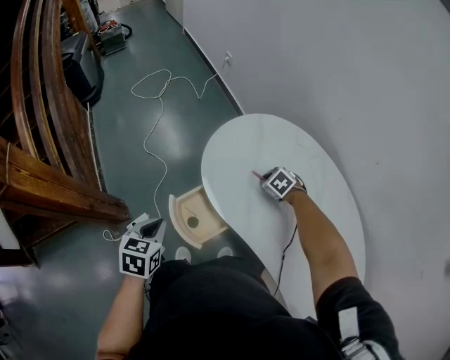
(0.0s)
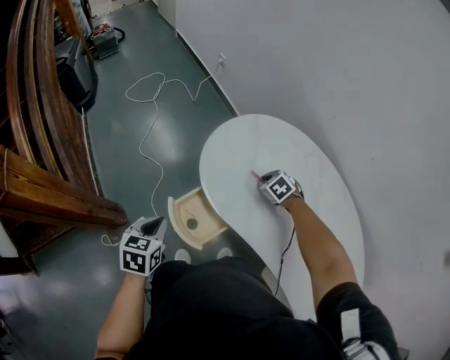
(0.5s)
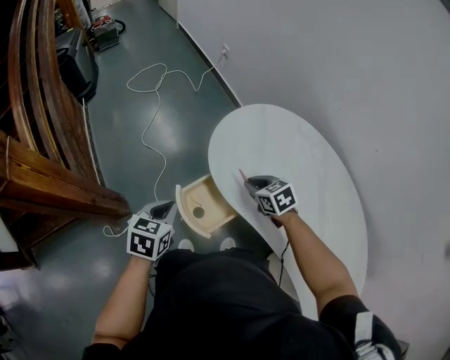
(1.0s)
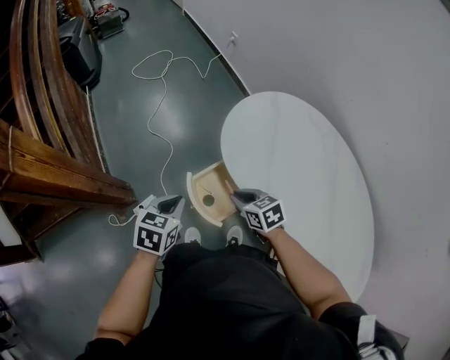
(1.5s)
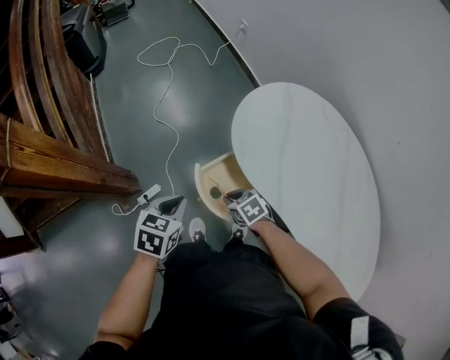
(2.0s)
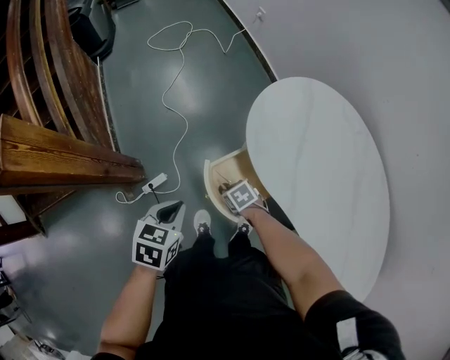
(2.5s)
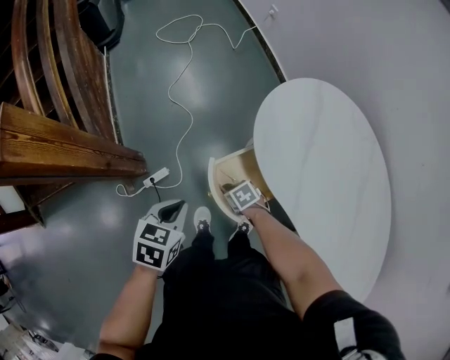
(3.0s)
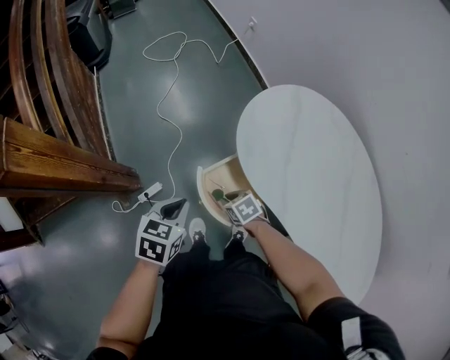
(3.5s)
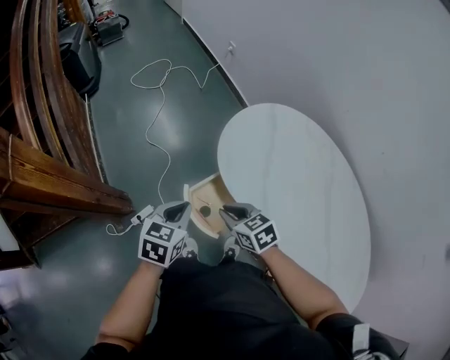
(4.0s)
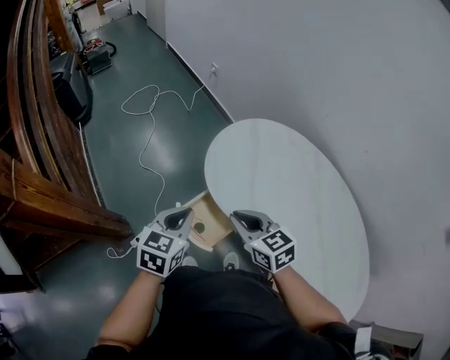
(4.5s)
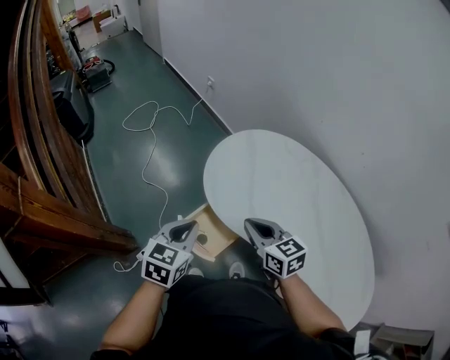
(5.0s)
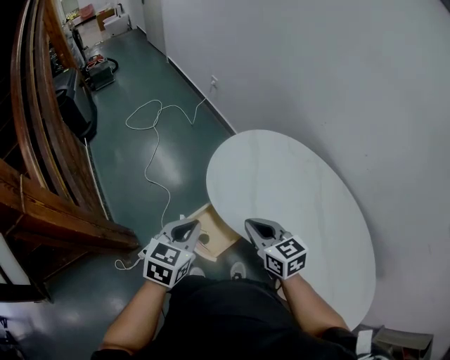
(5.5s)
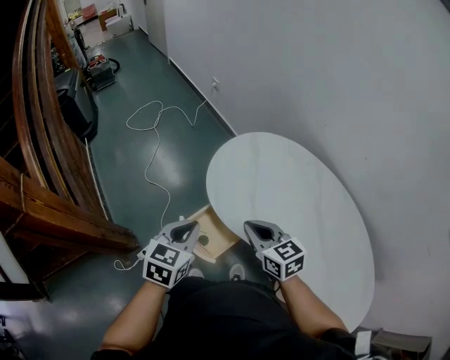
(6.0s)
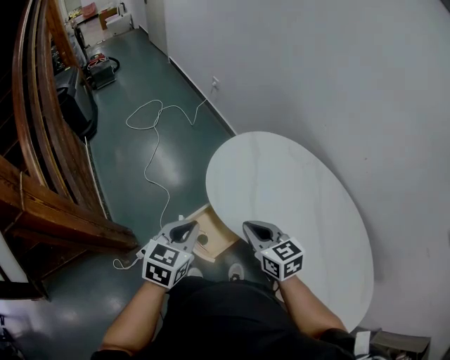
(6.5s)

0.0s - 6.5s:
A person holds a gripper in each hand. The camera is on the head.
0.0s - 2.0s: The right gripper moves to the left and backward, some 30 cm, and rotates about 20 degrees. Meanwhile the left gripper ends up about 5 cm from where it was.
2.0s - 4.5s: The right gripper shifts approximately 25 cm upward, and changes its angle by approximately 40 degrees. Meanwhile the left gripper is displaced upward by about 10 cm.
4.5s - 6.5s: The grippers make only small movements.

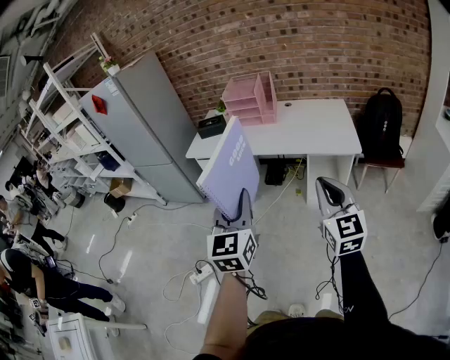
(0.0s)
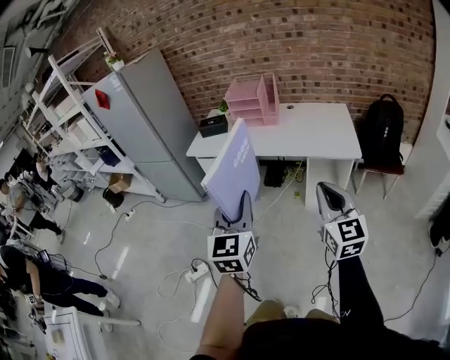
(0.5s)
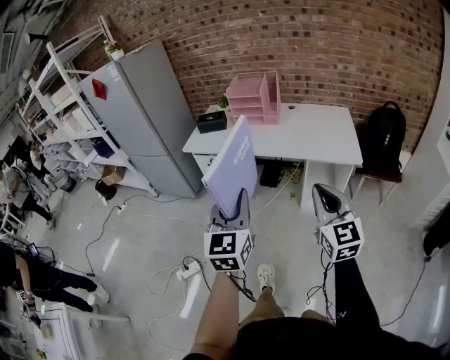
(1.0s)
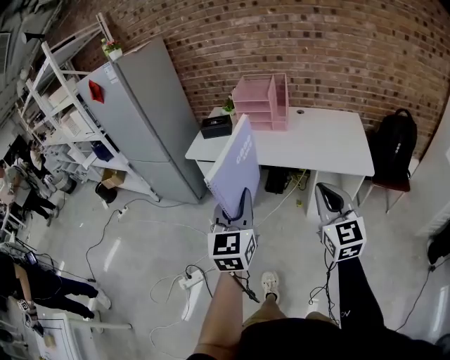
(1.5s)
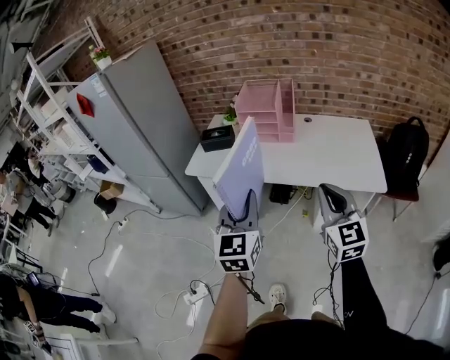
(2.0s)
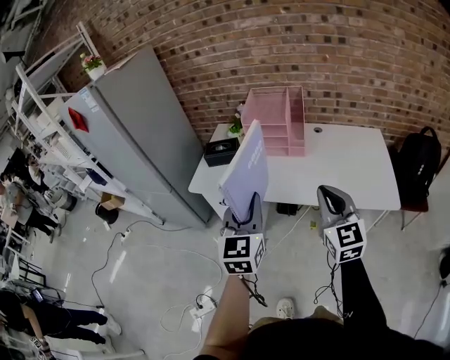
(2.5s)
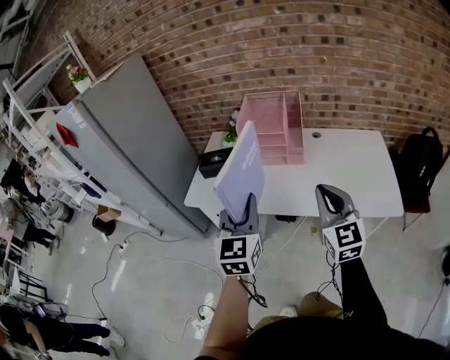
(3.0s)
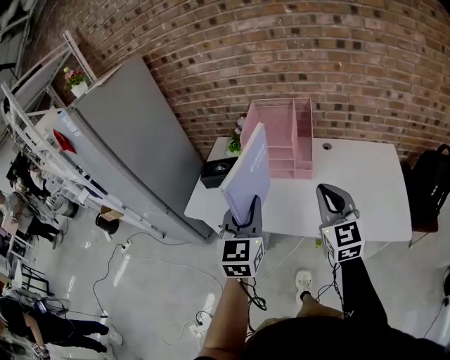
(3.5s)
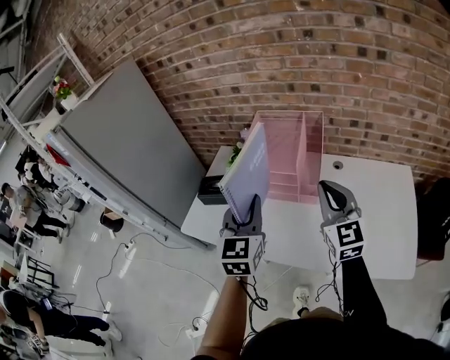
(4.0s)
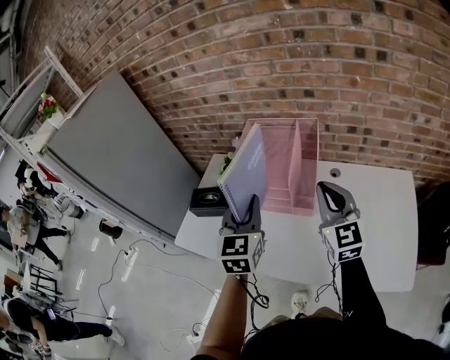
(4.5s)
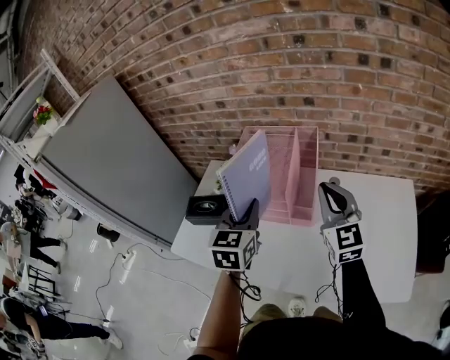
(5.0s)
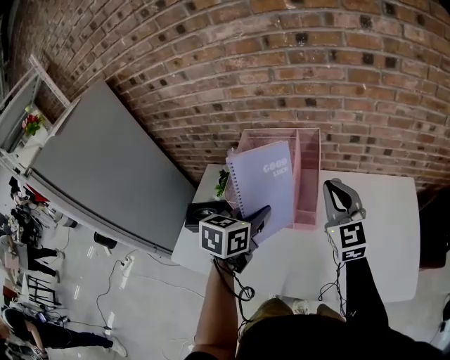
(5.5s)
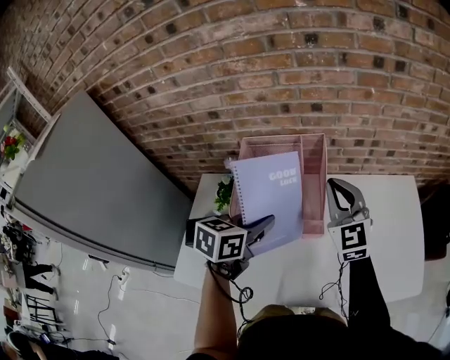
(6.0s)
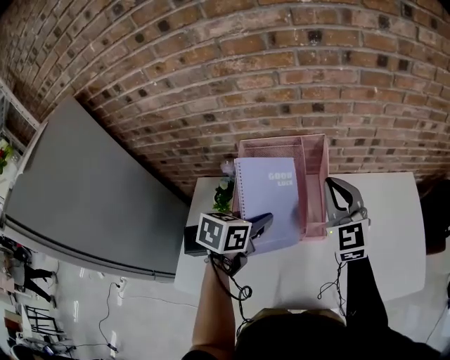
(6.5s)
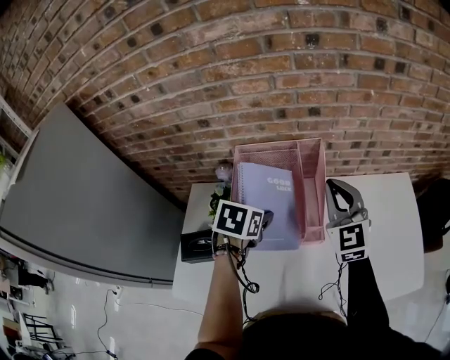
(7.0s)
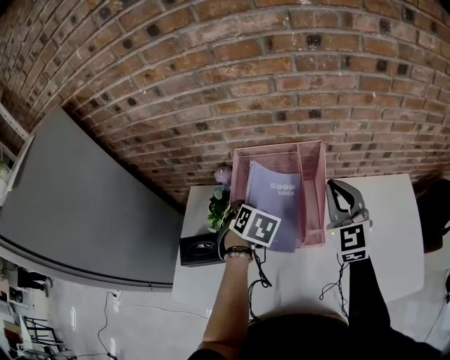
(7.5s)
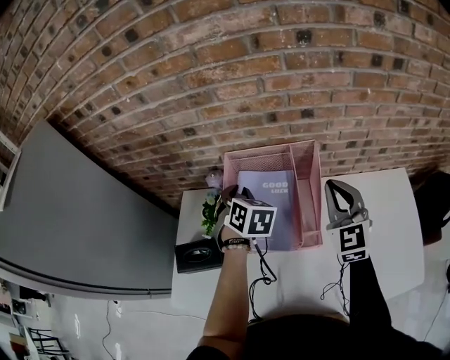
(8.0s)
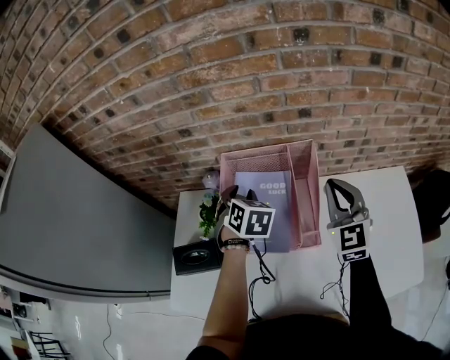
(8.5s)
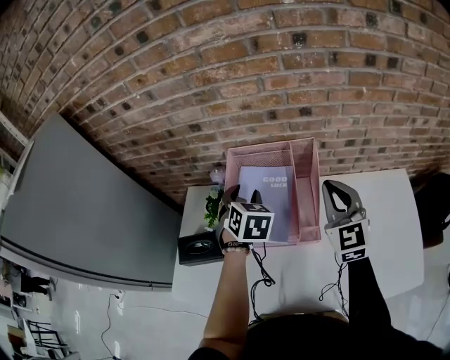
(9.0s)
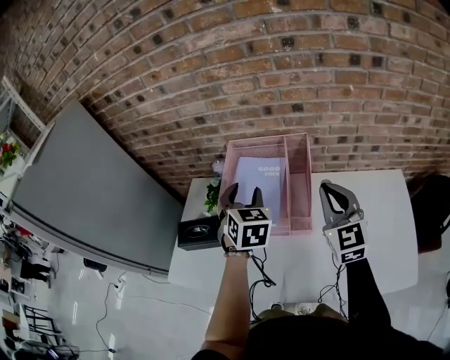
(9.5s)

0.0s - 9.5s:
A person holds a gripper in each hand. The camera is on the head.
0.0s - 2.0s: The grippers both shift forward by about 25 cm.
2.0s - 4.0s: The two grippers travel together, forward, about 40 cm.
4.0s - 5.5s: The left gripper is displaced forward, to the right and downward by roughly 15 cm, and rotates approximately 40 degrees. The right gripper travels forward by approximately 15 cm.
5.5s - 7.5s: The left gripper moves forward, to the left and downward, about 20 cm, turns by about 40 degrees, and opens; the right gripper is displaced forward and to the left by some 10 cm.
7.5s - 9.5s: The right gripper shifts about 10 cm backward; the left gripper moves upward, about 10 cm, angles its fingers upward, by about 30 degrees, and closes, then reopens.

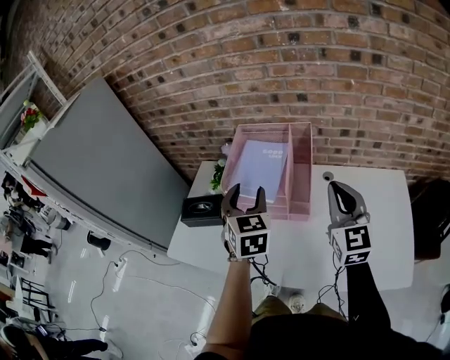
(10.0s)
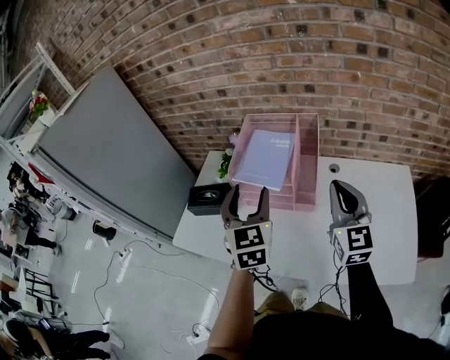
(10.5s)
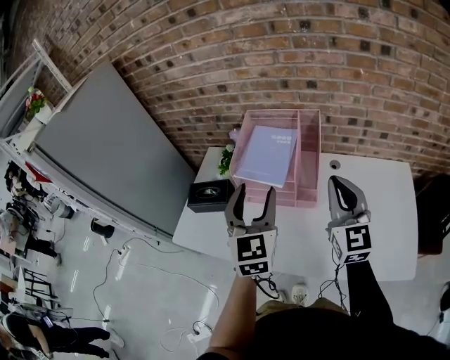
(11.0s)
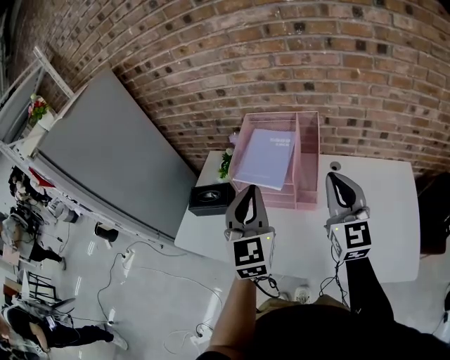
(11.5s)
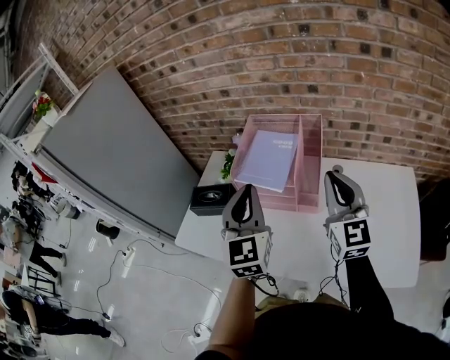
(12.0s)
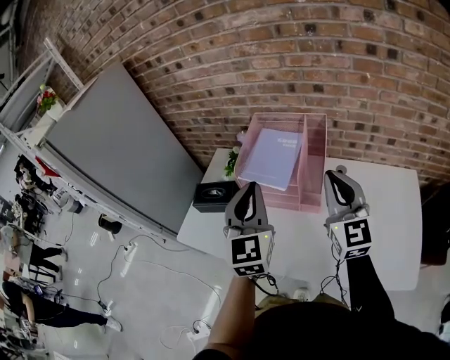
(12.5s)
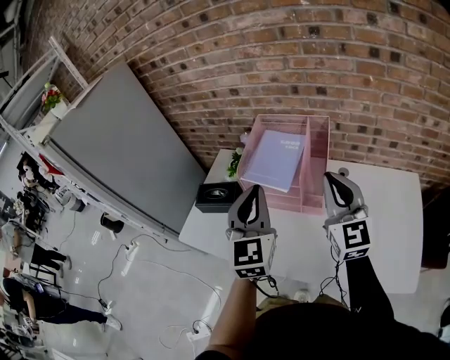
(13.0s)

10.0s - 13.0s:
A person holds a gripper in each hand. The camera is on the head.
10.0s - 11.5s: The left gripper moves backward, some 5 cm, and closes its fingers.
11.5s - 13.0s: The grippers move only a little.

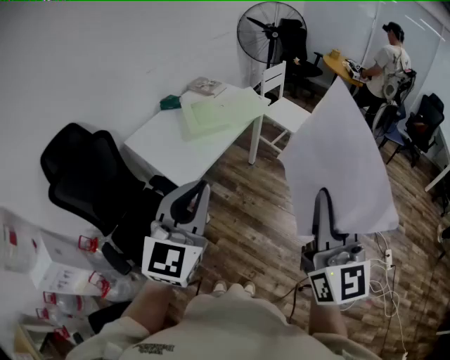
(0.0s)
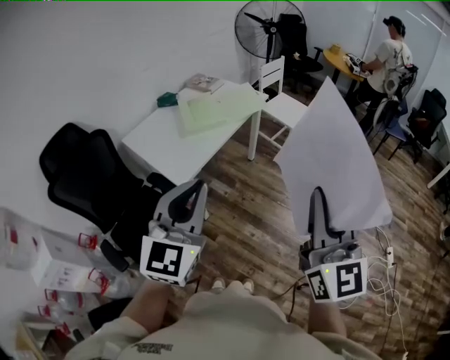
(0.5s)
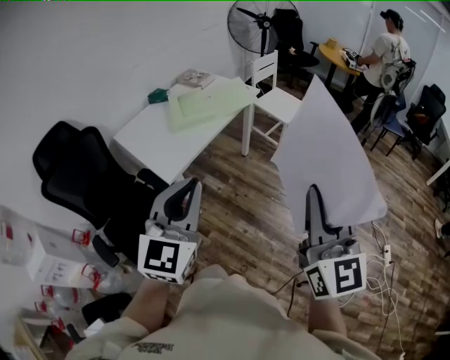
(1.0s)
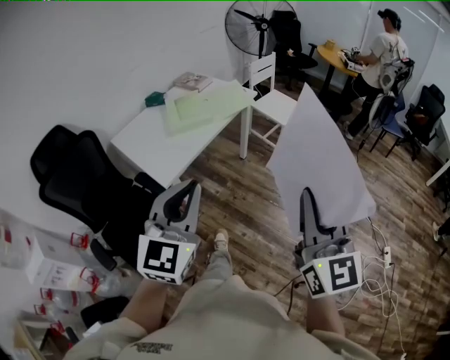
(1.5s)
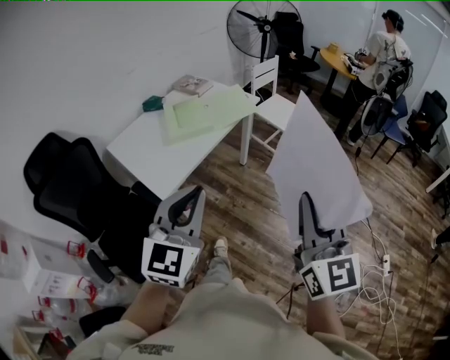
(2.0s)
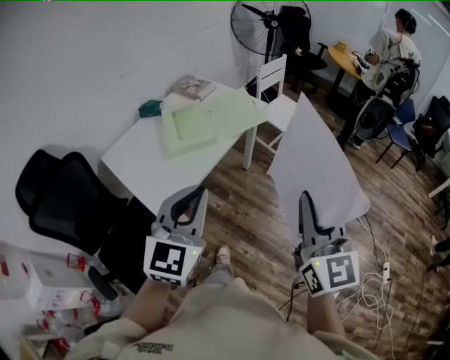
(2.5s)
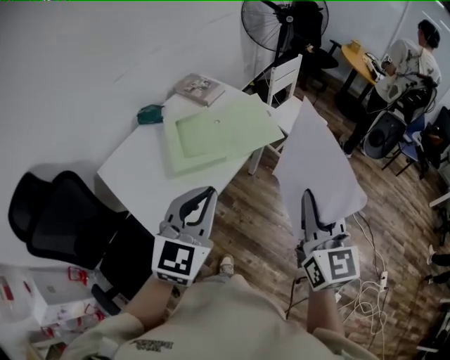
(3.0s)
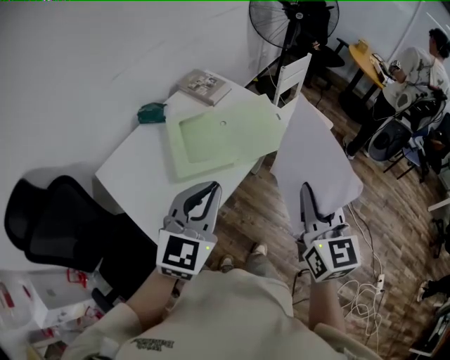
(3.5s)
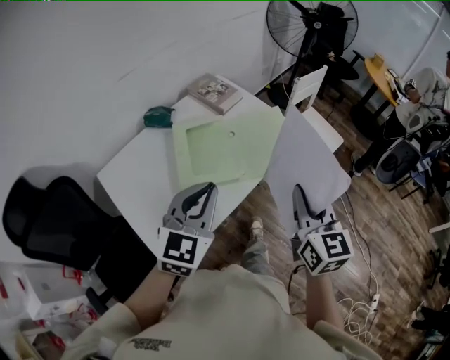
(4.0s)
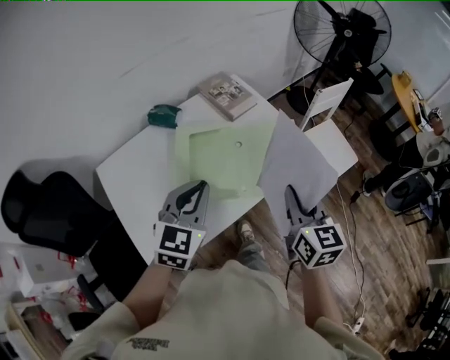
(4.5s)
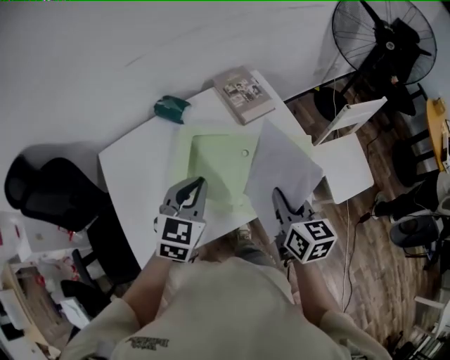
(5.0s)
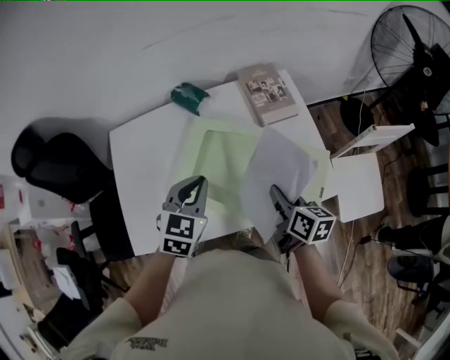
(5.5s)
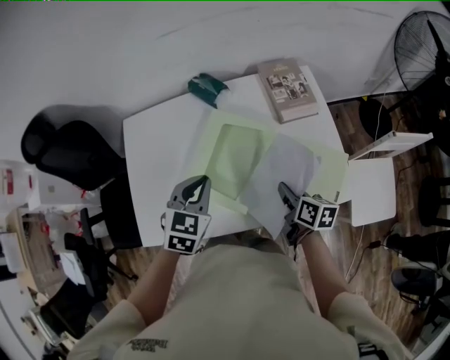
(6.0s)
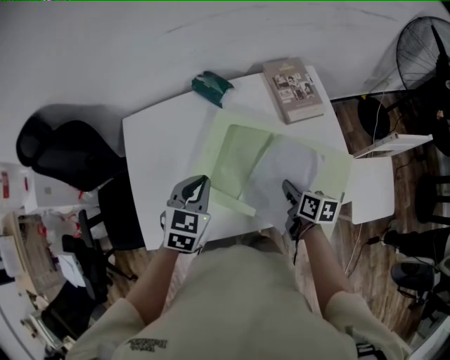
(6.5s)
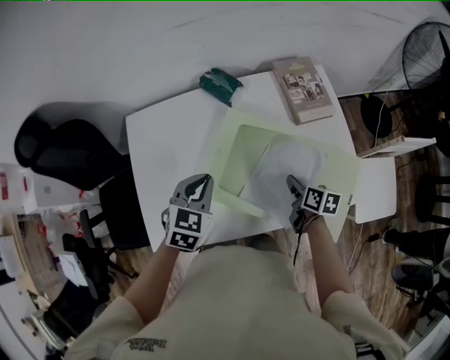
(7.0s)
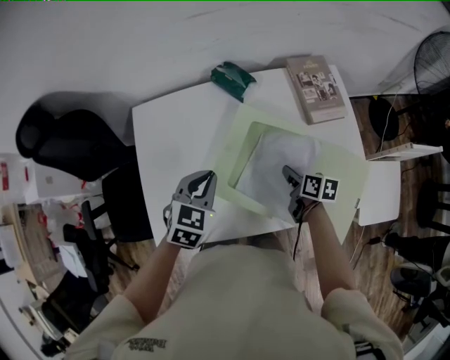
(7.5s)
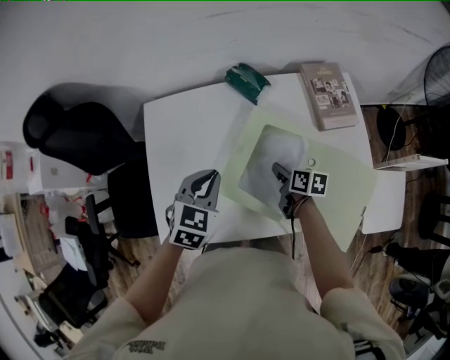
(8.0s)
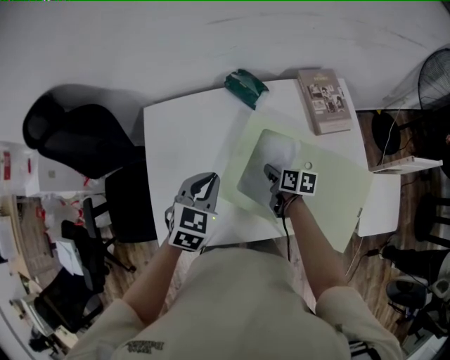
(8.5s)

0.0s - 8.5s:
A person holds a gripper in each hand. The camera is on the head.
0.0s - 2.0s: Both grippers move forward, to the right and downward, some 15 cm.
2.0s - 4.0s: The two grippers travel together, forward, some 50 cm. The right gripper turns by some 20 degrees.
4.0s - 6.5s: The right gripper moves some 40 cm, and turns by some 60 degrees. Meanwhile the left gripper shifts by about 25 cm, and swivels roughly 50 degrees.
6.5s - 8.5s: The left gripper is displaced to the left by some 5 cm. The right gripper travels to the left, forward and downward by approximately 20 cm.
